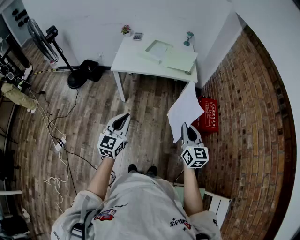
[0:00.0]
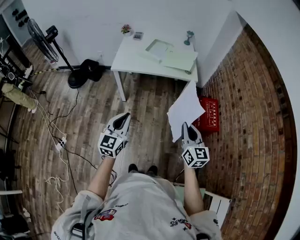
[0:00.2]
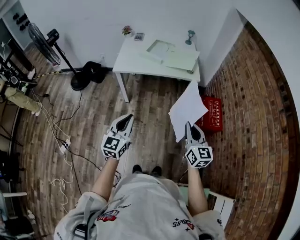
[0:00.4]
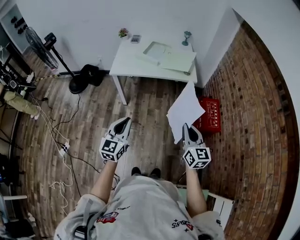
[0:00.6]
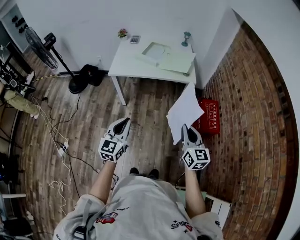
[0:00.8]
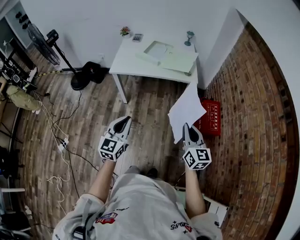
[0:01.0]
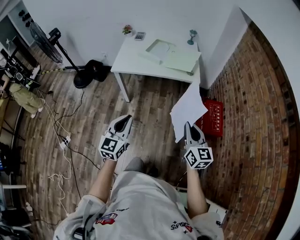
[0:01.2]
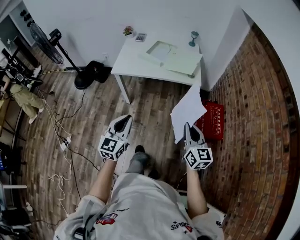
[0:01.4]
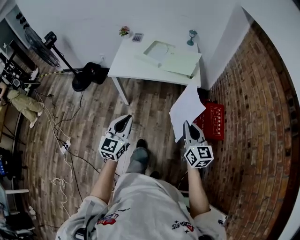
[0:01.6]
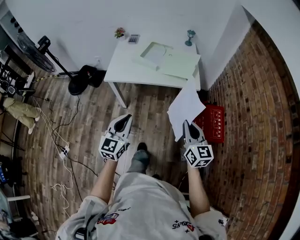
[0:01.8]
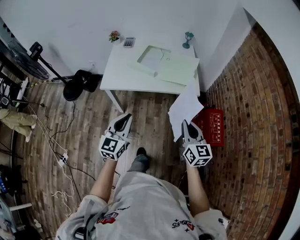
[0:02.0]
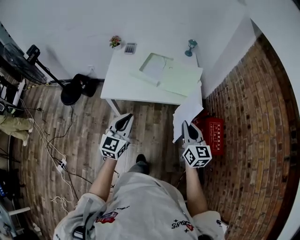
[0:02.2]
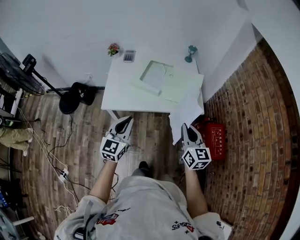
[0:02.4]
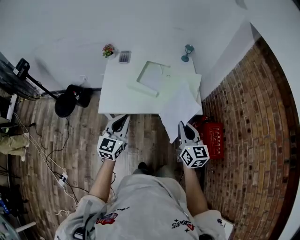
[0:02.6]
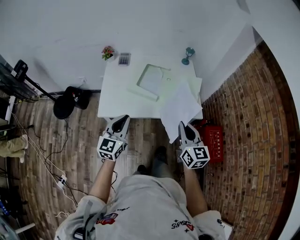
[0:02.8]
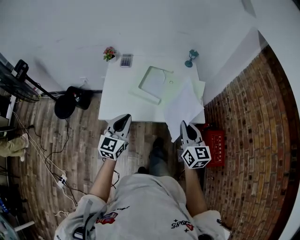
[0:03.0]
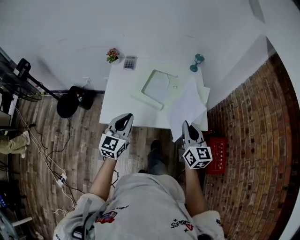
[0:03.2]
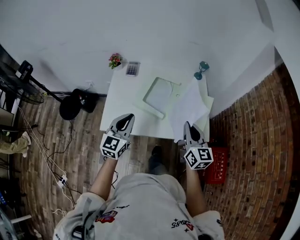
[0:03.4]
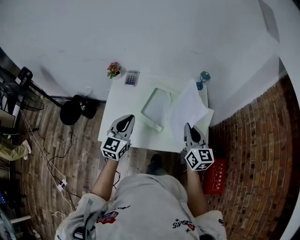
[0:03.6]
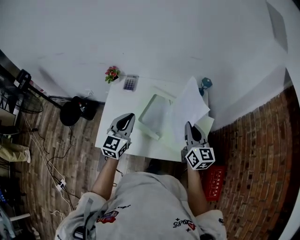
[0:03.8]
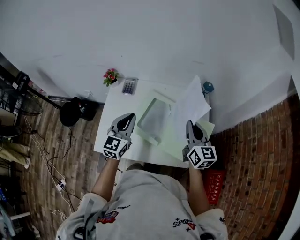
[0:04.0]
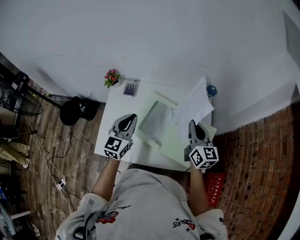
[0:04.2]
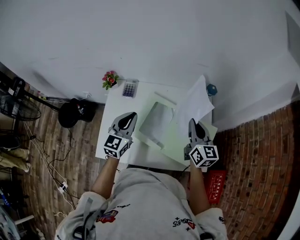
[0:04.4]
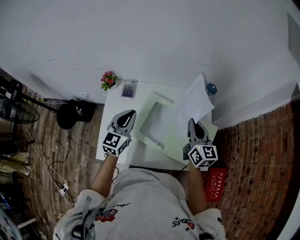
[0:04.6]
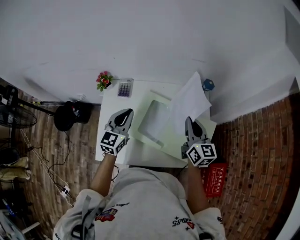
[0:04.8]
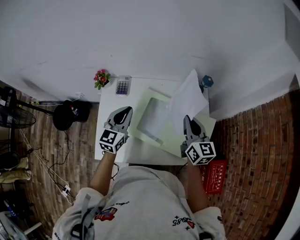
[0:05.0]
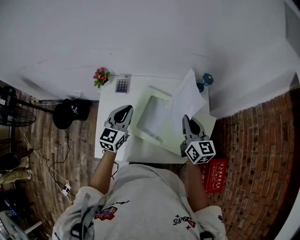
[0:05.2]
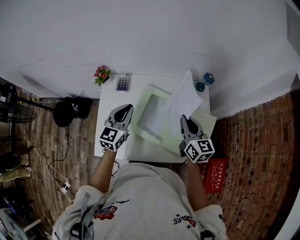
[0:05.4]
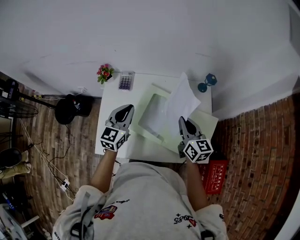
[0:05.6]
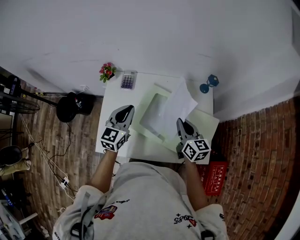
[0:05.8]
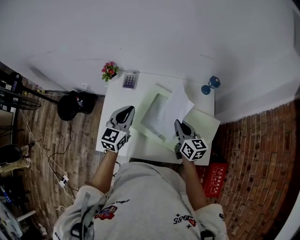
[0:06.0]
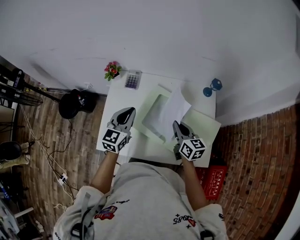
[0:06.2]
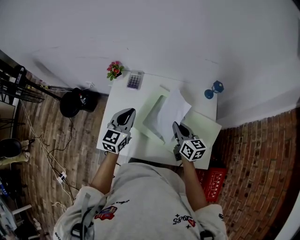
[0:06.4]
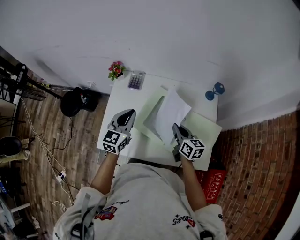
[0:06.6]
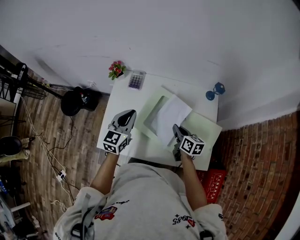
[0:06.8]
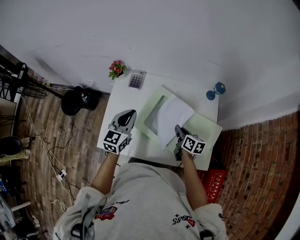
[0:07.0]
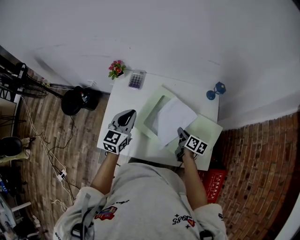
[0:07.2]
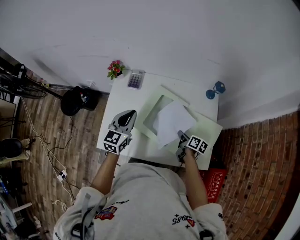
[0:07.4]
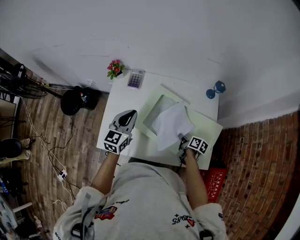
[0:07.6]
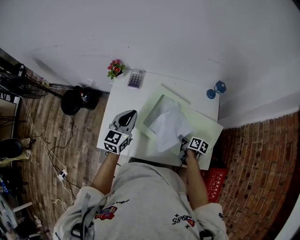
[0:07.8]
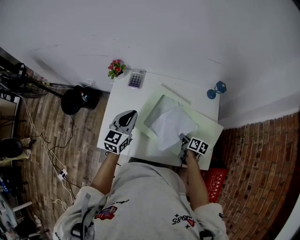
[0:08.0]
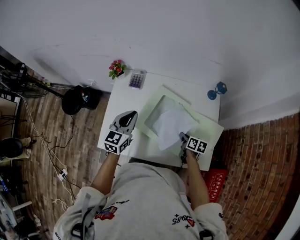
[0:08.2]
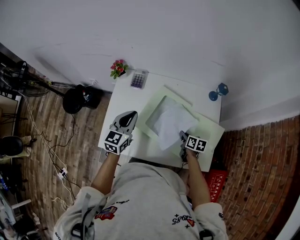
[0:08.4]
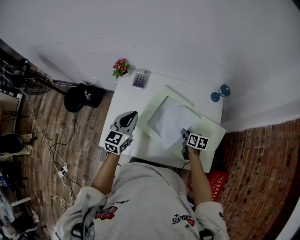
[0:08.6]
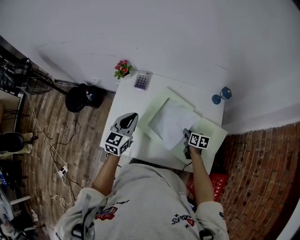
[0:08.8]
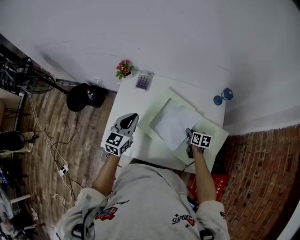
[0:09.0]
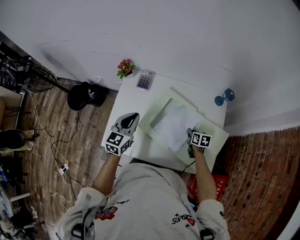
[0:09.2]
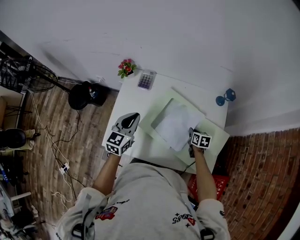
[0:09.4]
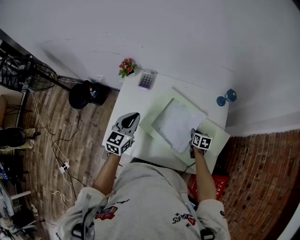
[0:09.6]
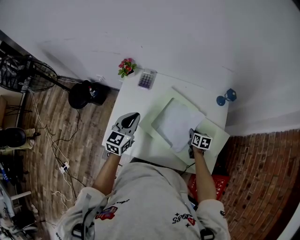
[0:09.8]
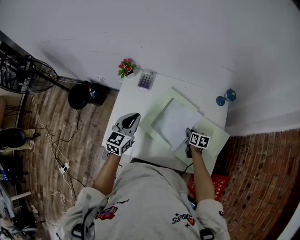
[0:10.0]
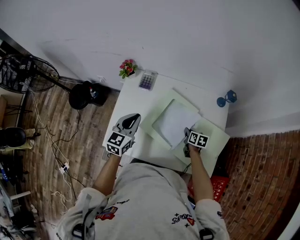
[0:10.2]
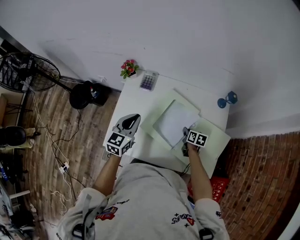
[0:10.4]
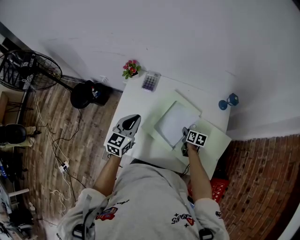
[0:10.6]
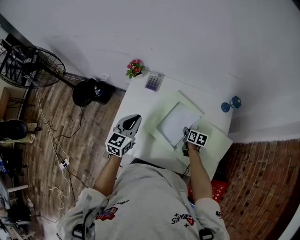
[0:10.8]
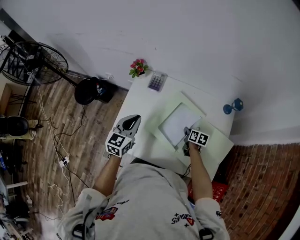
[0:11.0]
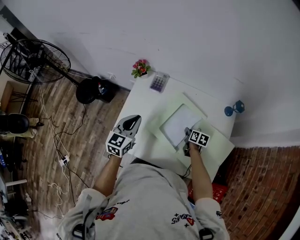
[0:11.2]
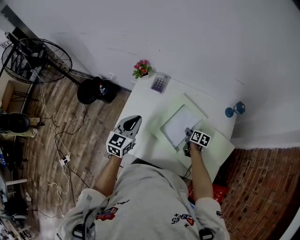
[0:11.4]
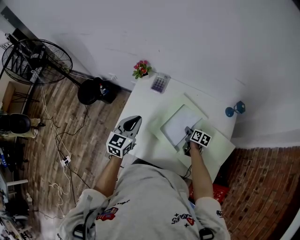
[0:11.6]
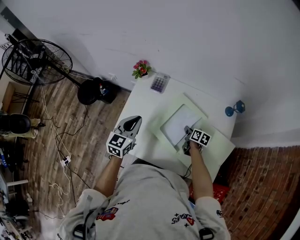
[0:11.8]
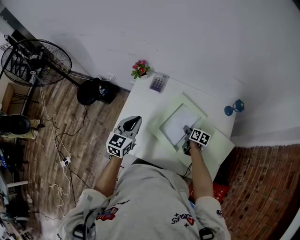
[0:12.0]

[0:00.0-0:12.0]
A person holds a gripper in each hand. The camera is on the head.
0:00.0 to 0:01.6: Both grippers travel together forward and to the right, some 10 cm.
0:01.6 to 0:03.0: Both grippers move forward, about 35 cm.
0:03.0 to 0:04.4: The grippers both shift forward by some 35 cm.
0:04.4 to 0:06.0: The right gripper travels downward and to the left by about 10 cm.
0:06.0 to 0:07.6: The right gripper goes approximately 20 cm downward, and twists approximately 40 degrees clockwise, seen from behind.
0:07.6 to 0:09.0: The right gripper is displaced forward by roughly 5 cm, and rotates roughly 30 degrees.
0:09.0 to 0:10.4: The grippers stay close to where they were, moving slightly.
0:10.4 to 0:12.0: The grippers stay close to where they were, moving slightly.

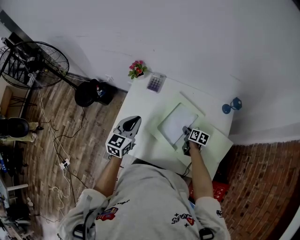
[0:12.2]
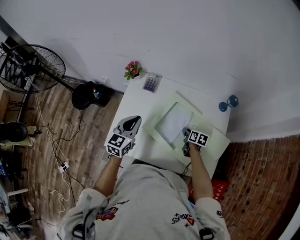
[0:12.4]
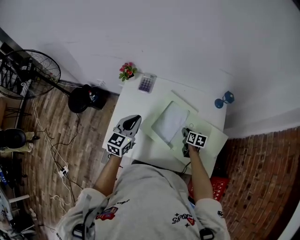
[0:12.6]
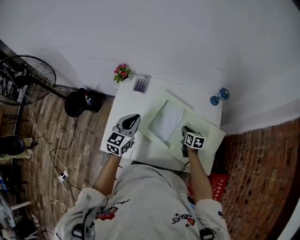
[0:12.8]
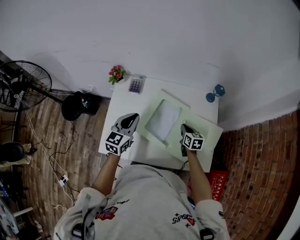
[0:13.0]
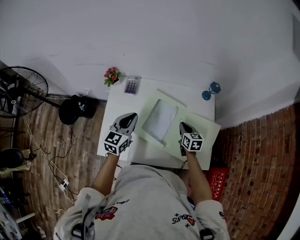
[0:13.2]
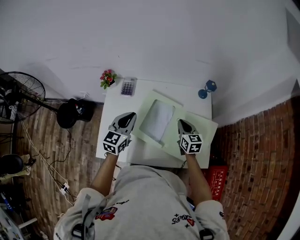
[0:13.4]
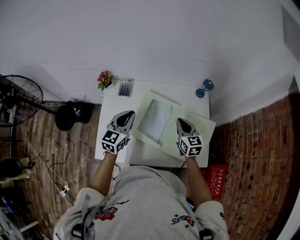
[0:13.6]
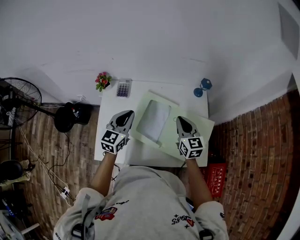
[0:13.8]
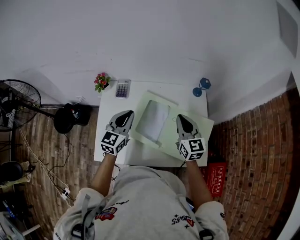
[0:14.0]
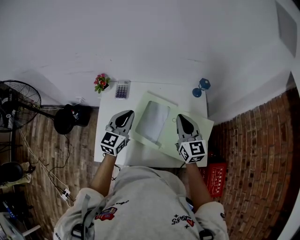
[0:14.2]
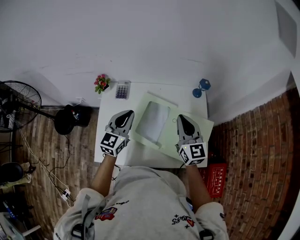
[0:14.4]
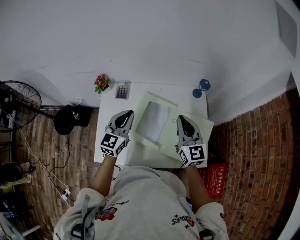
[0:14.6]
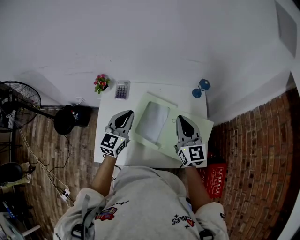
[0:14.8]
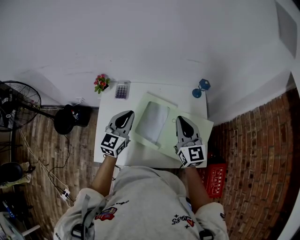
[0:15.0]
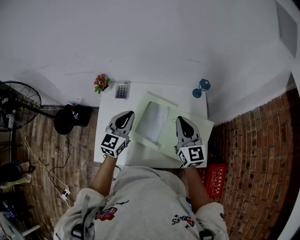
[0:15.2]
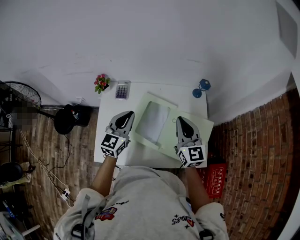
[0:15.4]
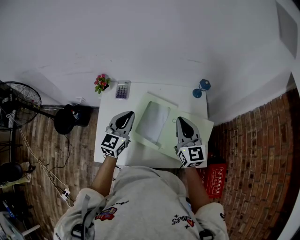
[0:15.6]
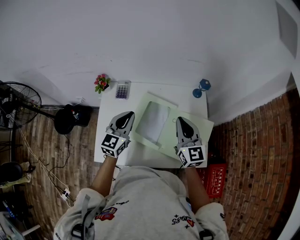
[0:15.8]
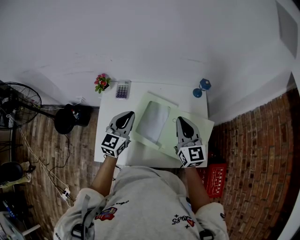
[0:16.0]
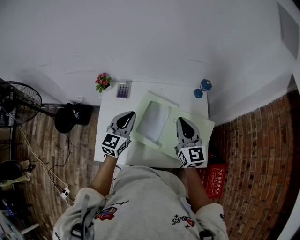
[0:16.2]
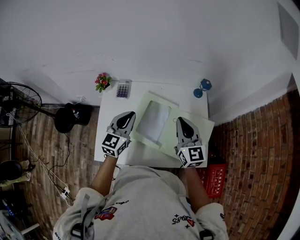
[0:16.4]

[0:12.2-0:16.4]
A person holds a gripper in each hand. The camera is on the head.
0:12.2 to 0:13.6: The right gripper heads upward, covering roughly 20 cm, swivels some 40 degrees, and closes; the left gripper goes approximately 10 cm to the right.
0:13.6 to 0:15.0: The right gripper heads upward, covering about 15 cm, and turns by some 20 degrees.
0:15.0 to 0:16.4: Both grippers stay put.

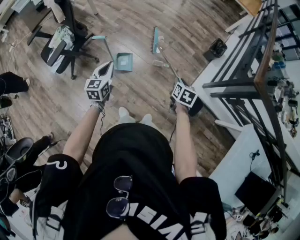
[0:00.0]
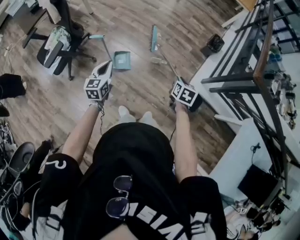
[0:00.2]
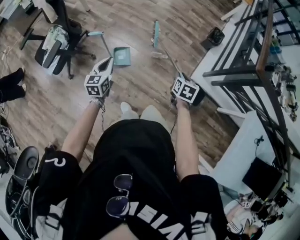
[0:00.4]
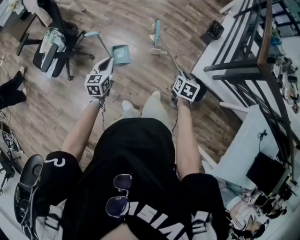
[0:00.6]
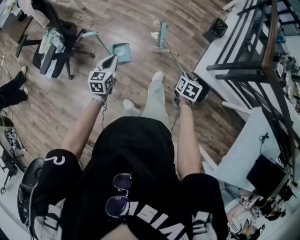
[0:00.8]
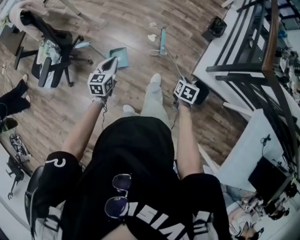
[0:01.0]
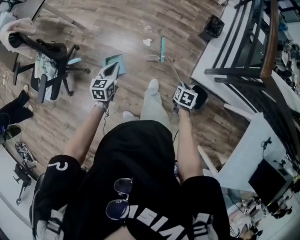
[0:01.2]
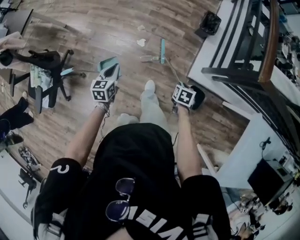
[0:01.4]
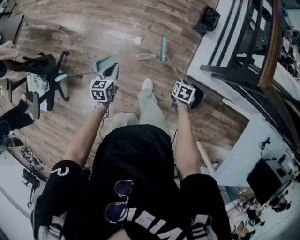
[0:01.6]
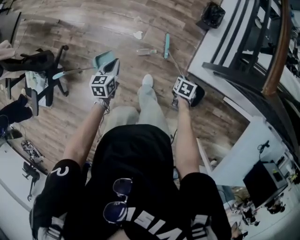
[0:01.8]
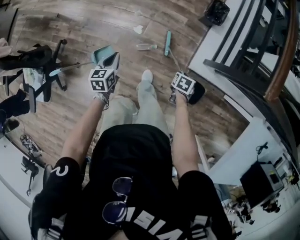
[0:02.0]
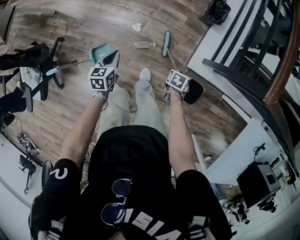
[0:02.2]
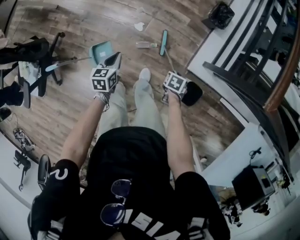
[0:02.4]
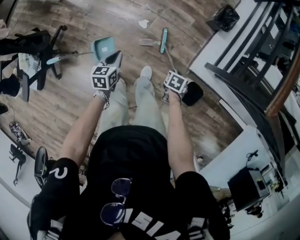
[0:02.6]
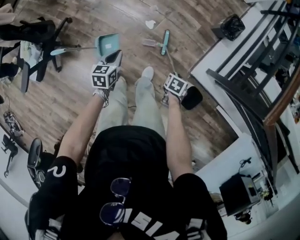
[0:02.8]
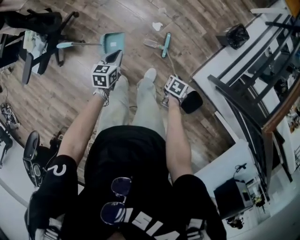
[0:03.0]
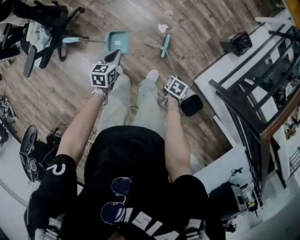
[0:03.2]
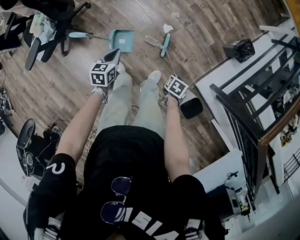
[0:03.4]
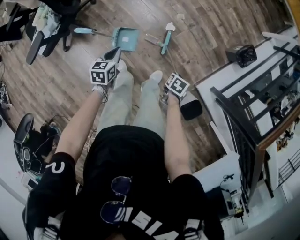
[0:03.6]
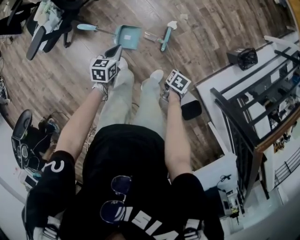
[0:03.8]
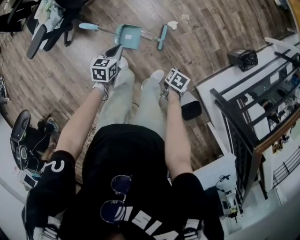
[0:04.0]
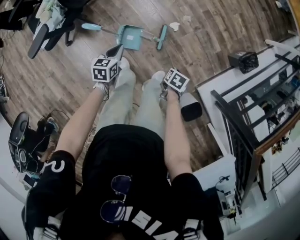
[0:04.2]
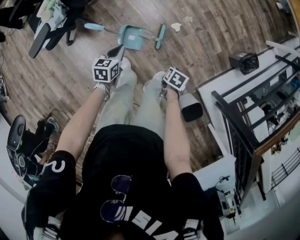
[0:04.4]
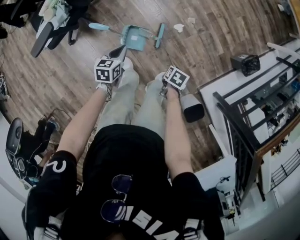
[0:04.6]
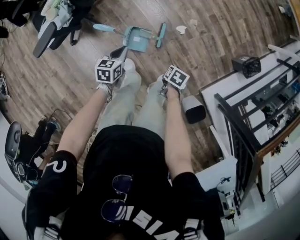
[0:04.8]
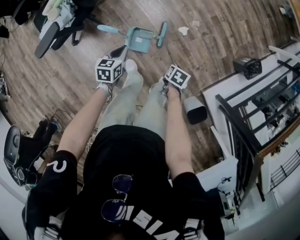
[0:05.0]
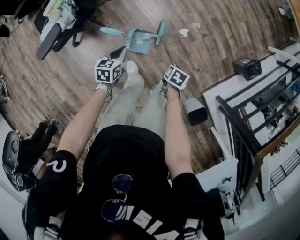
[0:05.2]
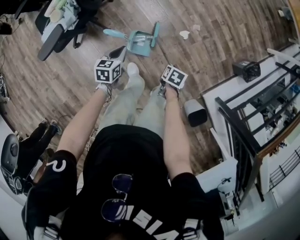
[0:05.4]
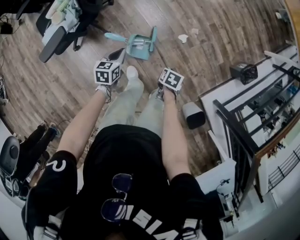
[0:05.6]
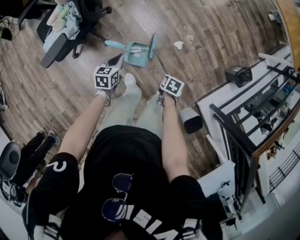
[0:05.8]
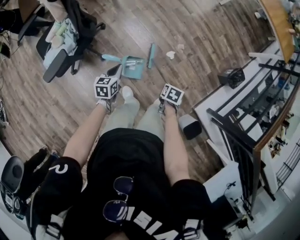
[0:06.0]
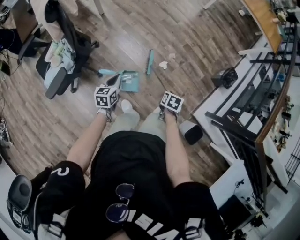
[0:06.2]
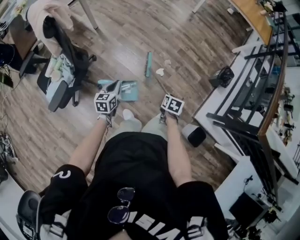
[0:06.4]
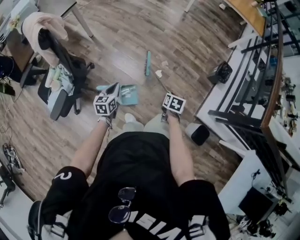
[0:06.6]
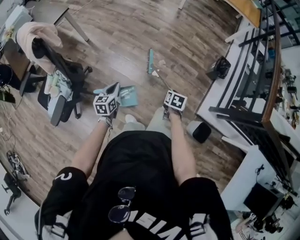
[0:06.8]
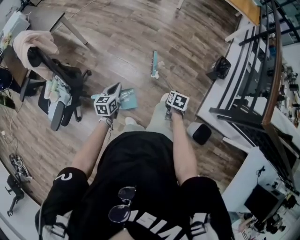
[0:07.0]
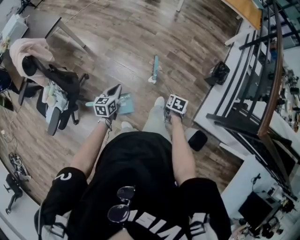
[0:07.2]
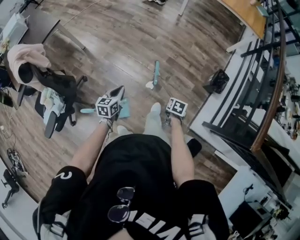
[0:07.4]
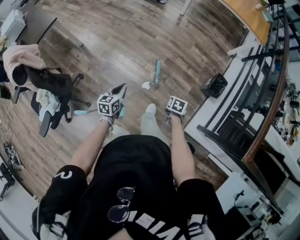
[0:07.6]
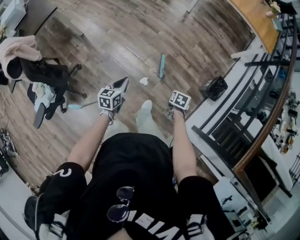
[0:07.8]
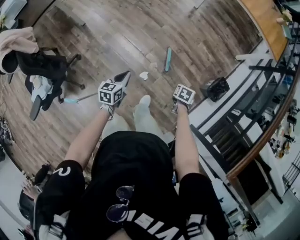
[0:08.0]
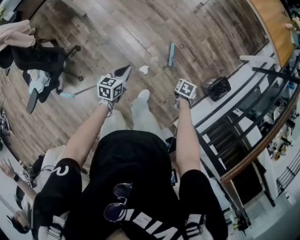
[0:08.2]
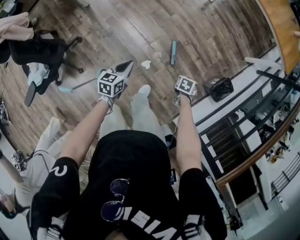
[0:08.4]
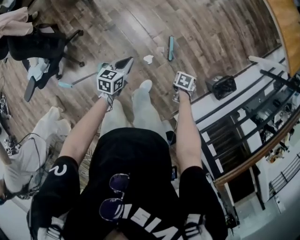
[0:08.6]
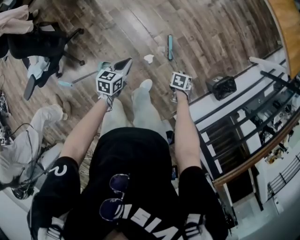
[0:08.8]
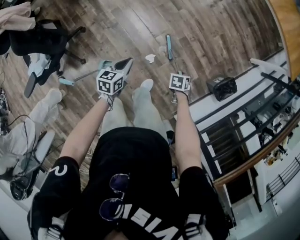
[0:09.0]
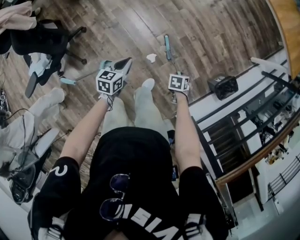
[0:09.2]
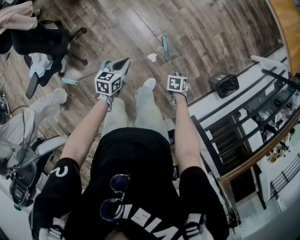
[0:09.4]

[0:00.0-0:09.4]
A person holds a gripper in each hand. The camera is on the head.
0:00.0 to 0:01.6: Both grippers travel together forward, downward and to the right, about 35 cm. The left gripper swivels roughly 30 degrees, while the right gripper swivels some 30 degrees.
0:01.6 to 0:03.2: The right gripper changes place by some 20 cm; the left gripper changes place by approximately 15 cm, and swivels roughly 20 degrees.
0:03.2 to 0:04.8: The left gripper shifts by approximately 15 cm. Meanwhile the right gripper shifts by approximately 20 cm.
0:04.8 to 0:06.2: The left gripper goes some 10 cm upward and to the left, while the right gripper moves upward, about 15 cm.
0:06.2 to 0:07.8: Both grippers move forward and to the right, about 40 cm.
0:07.8 to 0:09.4: The left gripper goes roughly 5 cm downward; the right gripper moves downward, some 10 cm, and swivels roughly 30 degrees.
